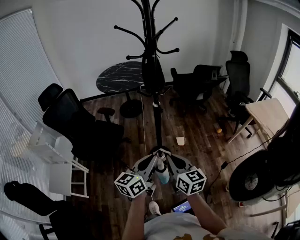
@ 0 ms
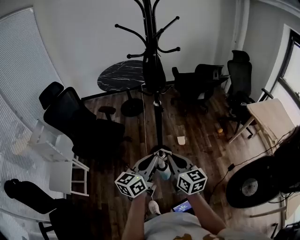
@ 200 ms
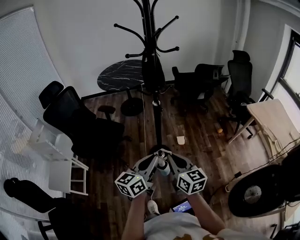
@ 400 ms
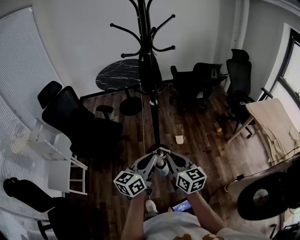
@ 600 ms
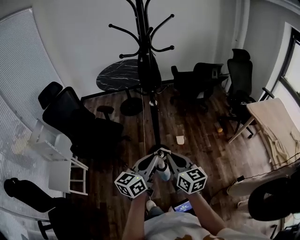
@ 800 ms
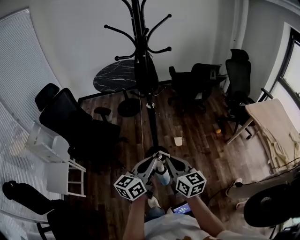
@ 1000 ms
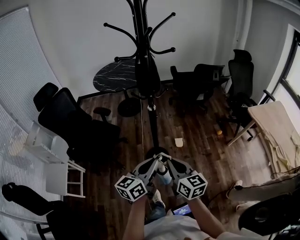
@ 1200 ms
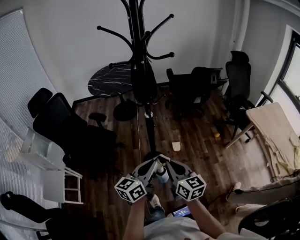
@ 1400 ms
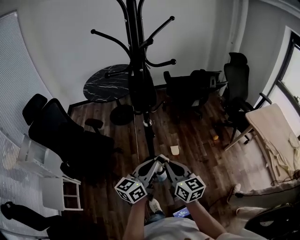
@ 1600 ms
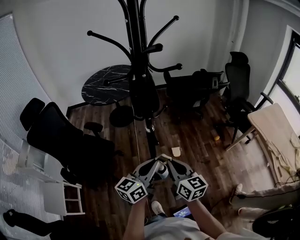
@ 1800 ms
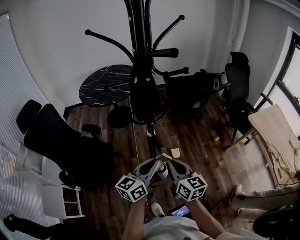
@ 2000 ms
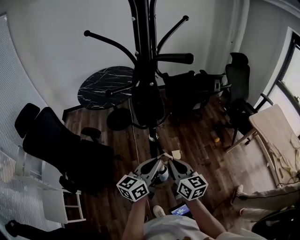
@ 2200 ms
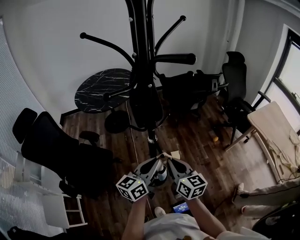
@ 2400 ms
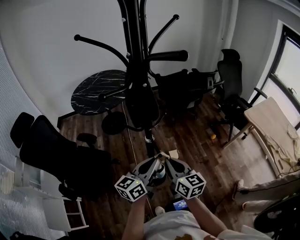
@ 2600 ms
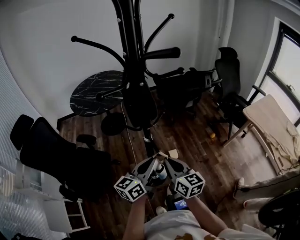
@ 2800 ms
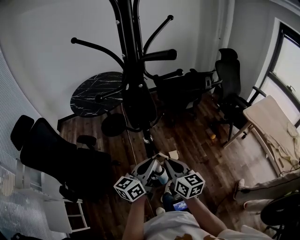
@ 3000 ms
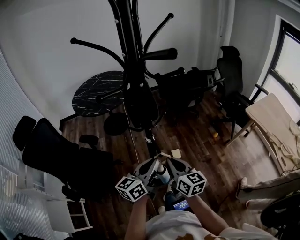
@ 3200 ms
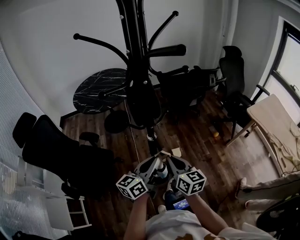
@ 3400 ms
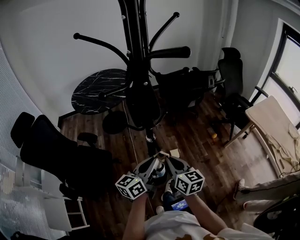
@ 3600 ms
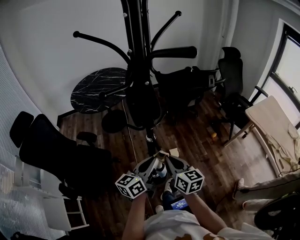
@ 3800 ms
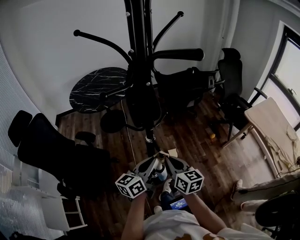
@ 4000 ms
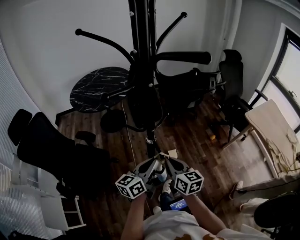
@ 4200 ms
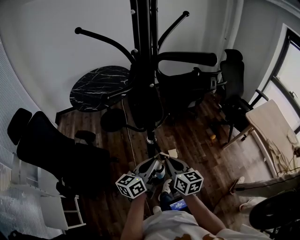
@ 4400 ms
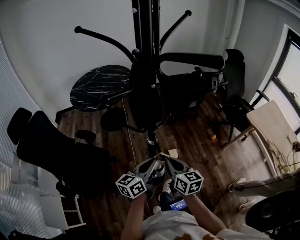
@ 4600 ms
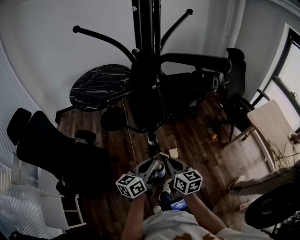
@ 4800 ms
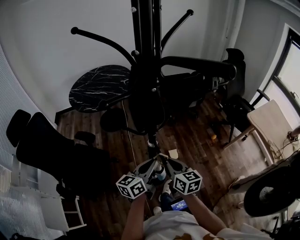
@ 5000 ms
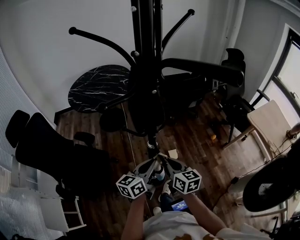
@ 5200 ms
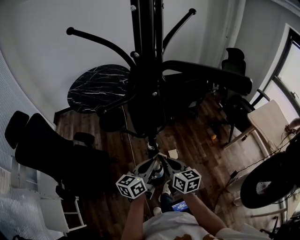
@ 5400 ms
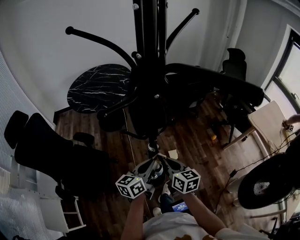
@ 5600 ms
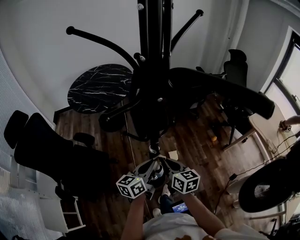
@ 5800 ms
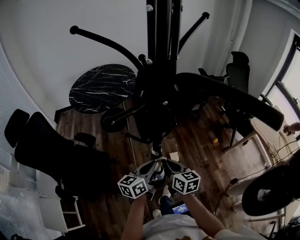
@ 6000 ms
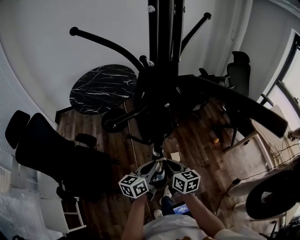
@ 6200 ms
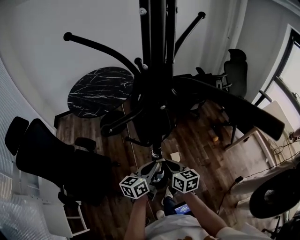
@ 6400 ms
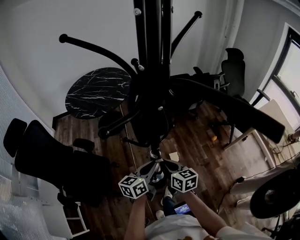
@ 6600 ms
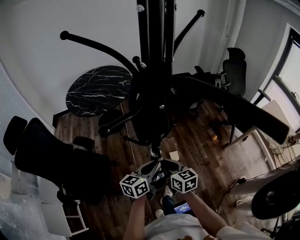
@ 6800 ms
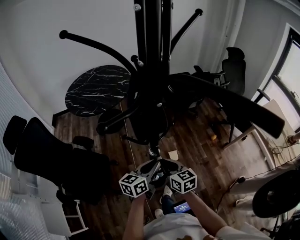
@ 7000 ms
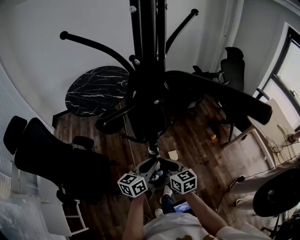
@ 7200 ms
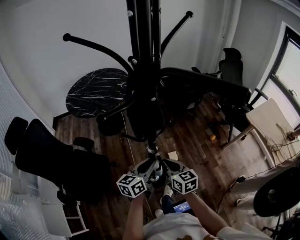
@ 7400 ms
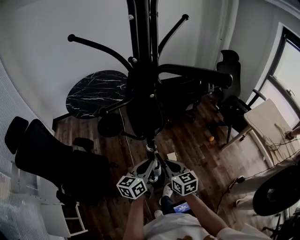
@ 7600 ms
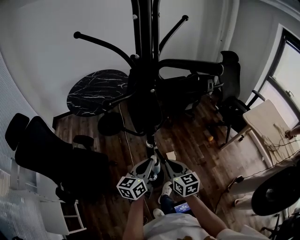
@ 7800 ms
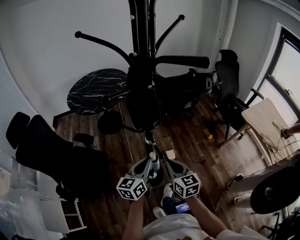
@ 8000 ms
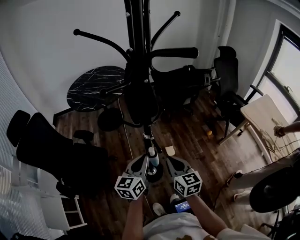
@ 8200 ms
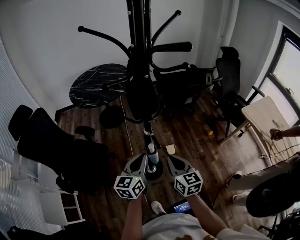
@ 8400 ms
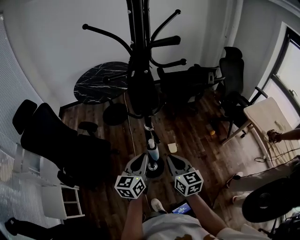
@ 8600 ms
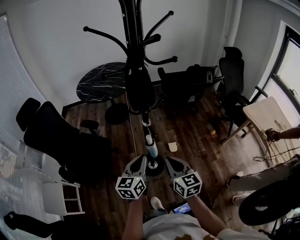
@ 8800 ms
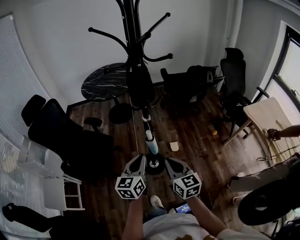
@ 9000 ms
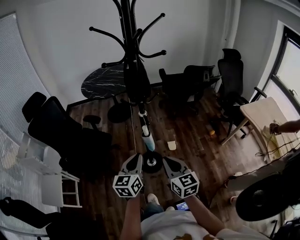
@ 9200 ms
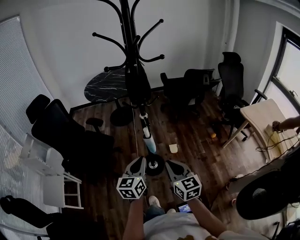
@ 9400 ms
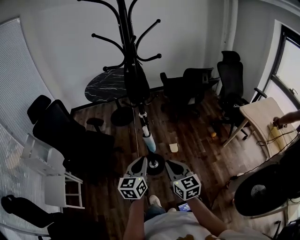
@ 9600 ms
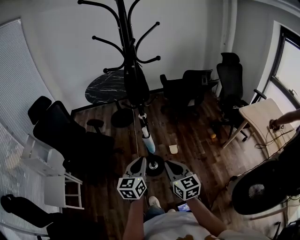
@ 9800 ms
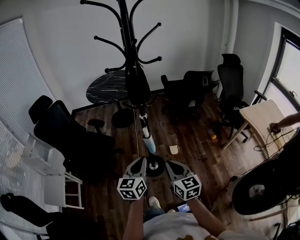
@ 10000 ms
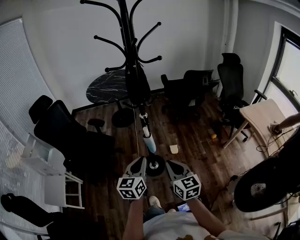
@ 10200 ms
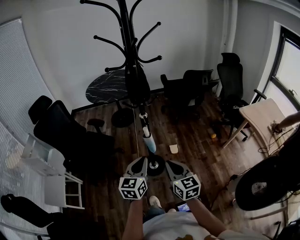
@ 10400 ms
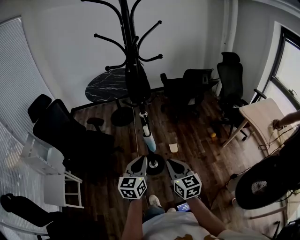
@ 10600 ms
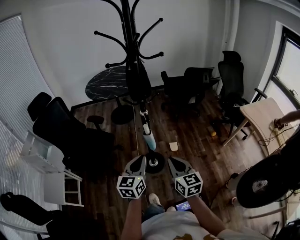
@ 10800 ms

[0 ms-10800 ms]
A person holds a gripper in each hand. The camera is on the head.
0 ms to 1600 ms: The two grippers go some 15 cm forward.
1600 ms to 3000 ms: The grippers both shift forward by some 10 cm.
3000 ms to 4600 ms: The left gripper changes place by roughly 5 cm. The right gripper moves roughly 5 cm.
4600 ms to 6200 ms: Both grippers move forward, approximately 5 cm.
6200 ms to 7800 ms: The right gripper heads backward, covering some 5 cm; the left gripper moves approximately 5 cm.
7800 ms to 9200 ms: Both grippers travel together backward, roughly 20 cm. The left gripper turns by about 20 degrees.
9200 ms to 10800 ms: The grippers move only a little.

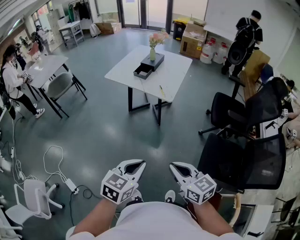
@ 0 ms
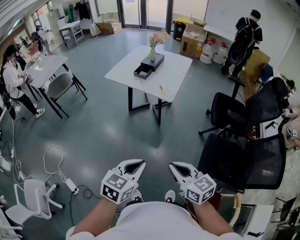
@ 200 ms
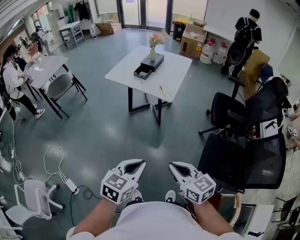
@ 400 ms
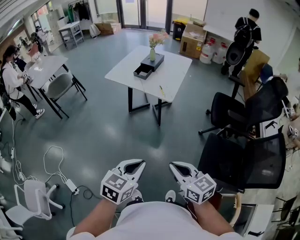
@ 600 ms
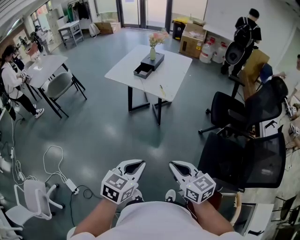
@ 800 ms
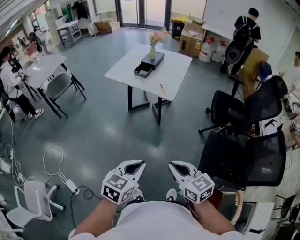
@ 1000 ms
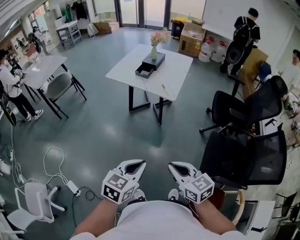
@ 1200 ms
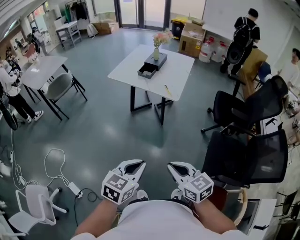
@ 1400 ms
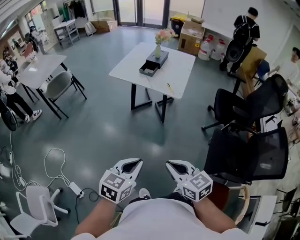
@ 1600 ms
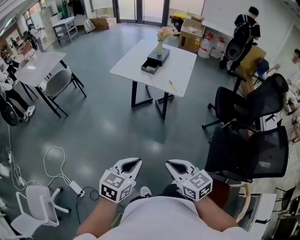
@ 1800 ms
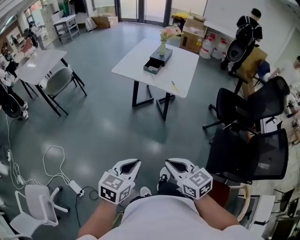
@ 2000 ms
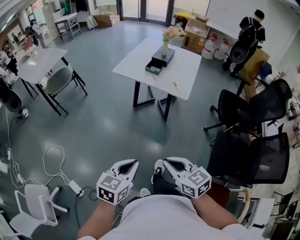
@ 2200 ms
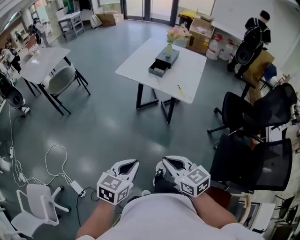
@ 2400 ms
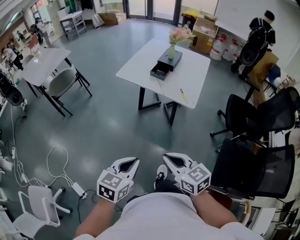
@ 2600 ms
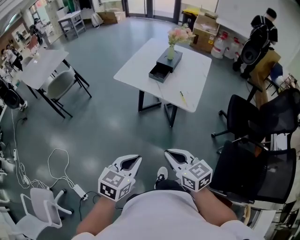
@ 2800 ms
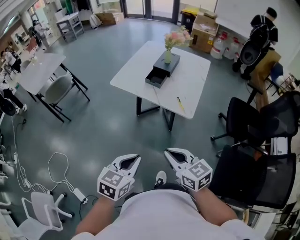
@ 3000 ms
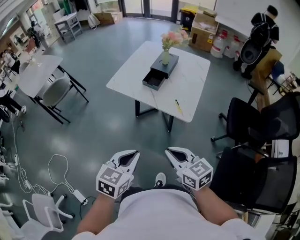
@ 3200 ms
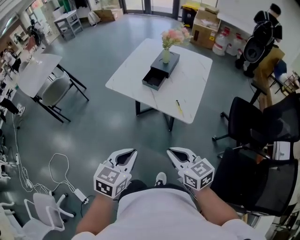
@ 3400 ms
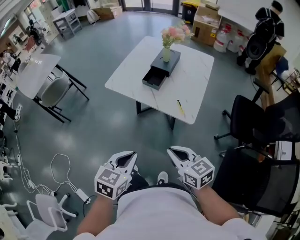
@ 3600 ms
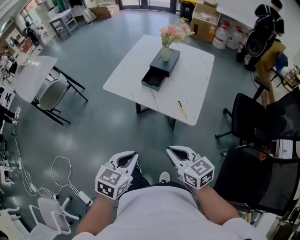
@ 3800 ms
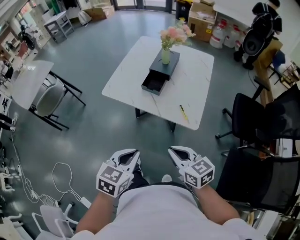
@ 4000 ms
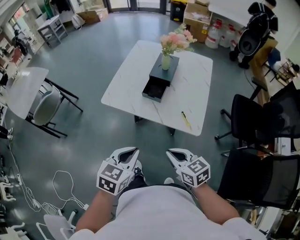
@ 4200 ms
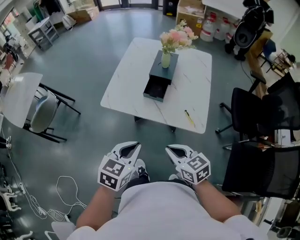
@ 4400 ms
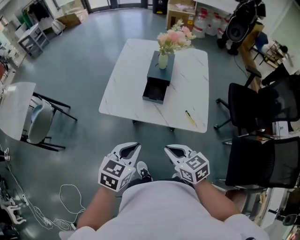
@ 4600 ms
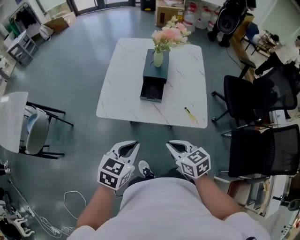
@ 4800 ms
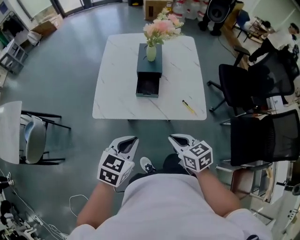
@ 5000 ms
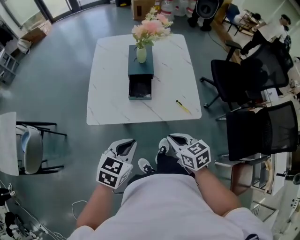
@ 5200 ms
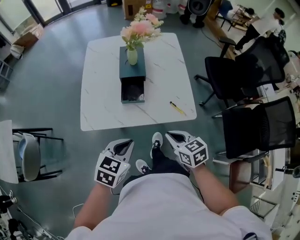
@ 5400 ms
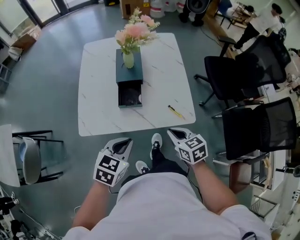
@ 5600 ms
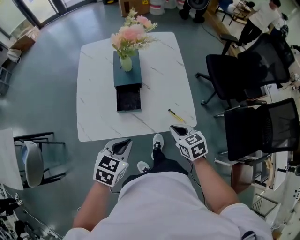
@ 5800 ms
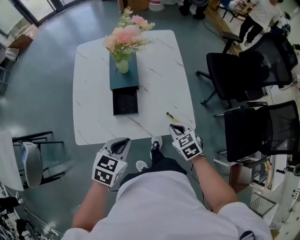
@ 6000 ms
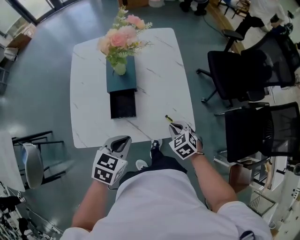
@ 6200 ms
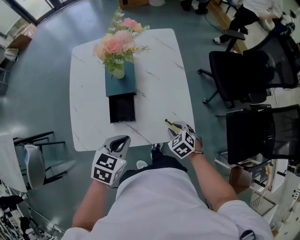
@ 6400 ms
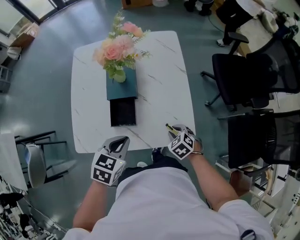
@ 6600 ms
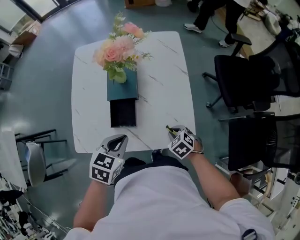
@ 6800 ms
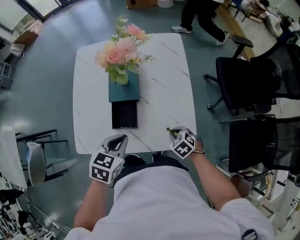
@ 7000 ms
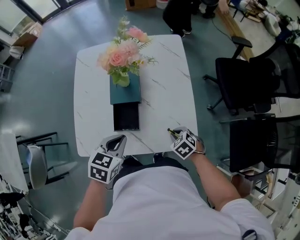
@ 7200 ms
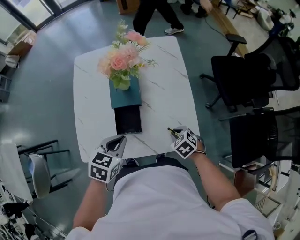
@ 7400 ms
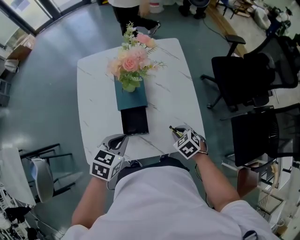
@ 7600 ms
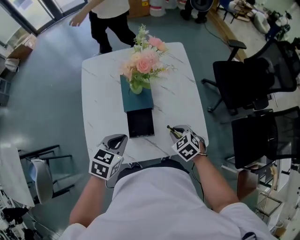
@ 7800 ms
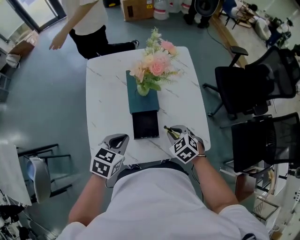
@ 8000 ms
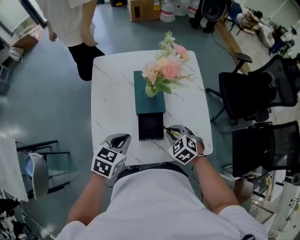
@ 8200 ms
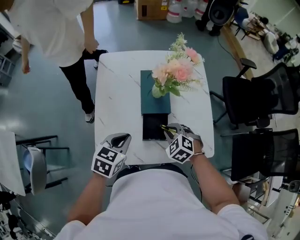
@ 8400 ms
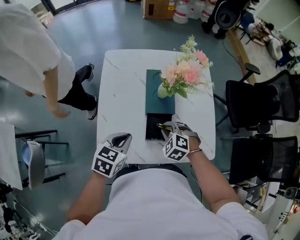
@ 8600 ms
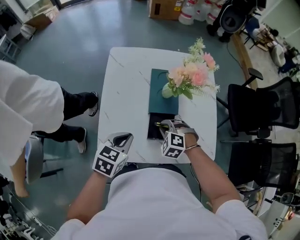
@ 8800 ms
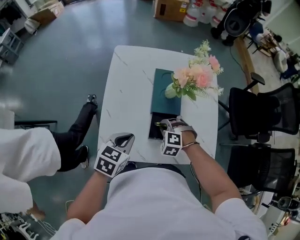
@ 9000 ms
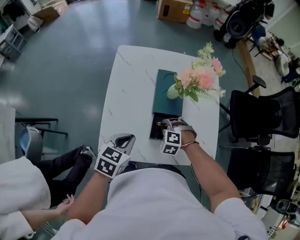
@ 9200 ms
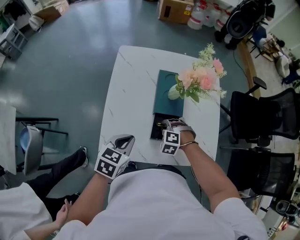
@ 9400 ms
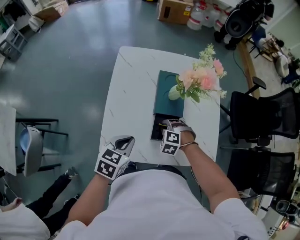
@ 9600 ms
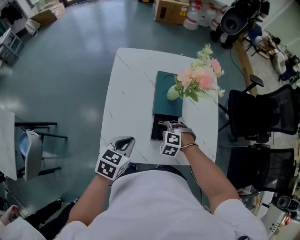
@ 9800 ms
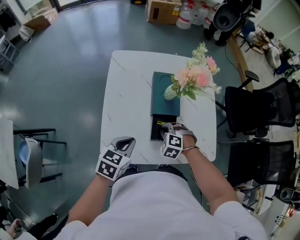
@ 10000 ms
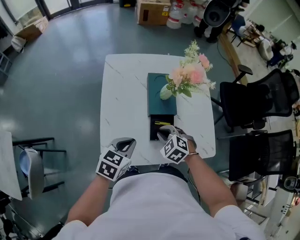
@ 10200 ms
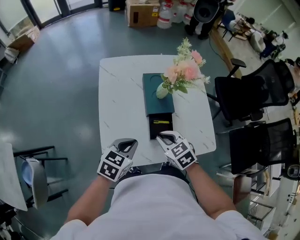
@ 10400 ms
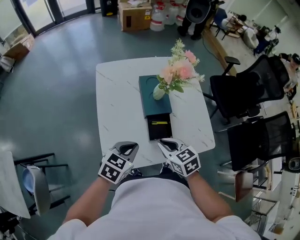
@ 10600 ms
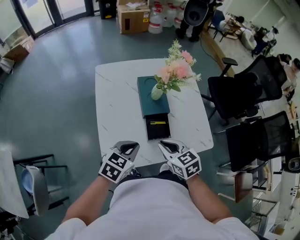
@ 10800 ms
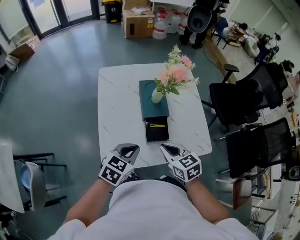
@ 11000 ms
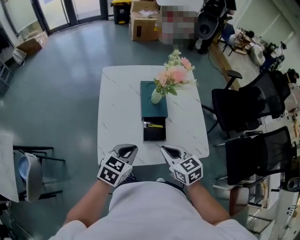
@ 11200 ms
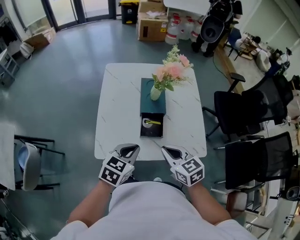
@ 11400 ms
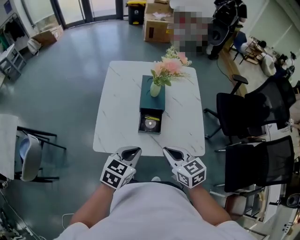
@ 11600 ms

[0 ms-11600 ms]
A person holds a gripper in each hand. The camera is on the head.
0 ms to 1400 ms: Both grippers move to the left, some 10 cm.
1400 ms to 2800 ms: The grippers both shift forward by roughly 20 cm.
2800 ms to 4400 ms: Both grippers move forward, approximately 30 cm.
4400 ms to 5800 ms: The left gripper ends up some 15 cm from where it was, and changes its angle by roughly 20 degrees; the right gripper moves approximately 20 cm, and changes its angle by approximately 30 degrees.
5800 ms to 7200 ms: The right gripper moves downward and forward, about 15 cm, and changes its angle by approximately 30 degrees. Meanwhile the left gripper travels forward by approximately 15 cm.
7200 ms to 8800 ms: The right gripper moves to the left, approximately 25 cm, and rotates around the line of its fingers by roughly 40 degrees, counterclockwise from behind. Meanwhile the left gripper goes approximately 15 cm to the left.
8800 ms to 10200 ms: The right gripper changes its angle by roughly 20 degrees.
10200 ms to 11600 ms: The right gripper goes roughly 20 cm backward, upward and to the right, and swivels about 50 degrees. Meanwhile the left gripper travels to the right and backward by approximately 15 cm.

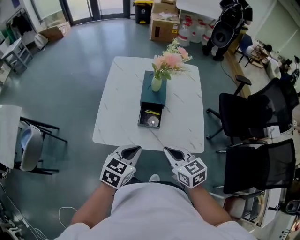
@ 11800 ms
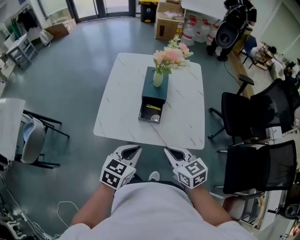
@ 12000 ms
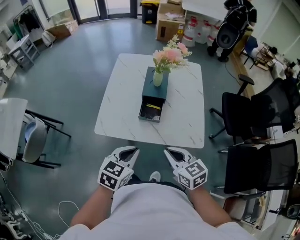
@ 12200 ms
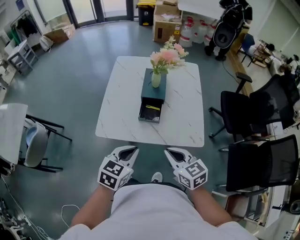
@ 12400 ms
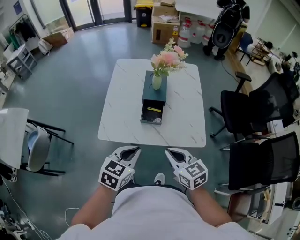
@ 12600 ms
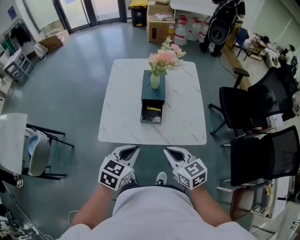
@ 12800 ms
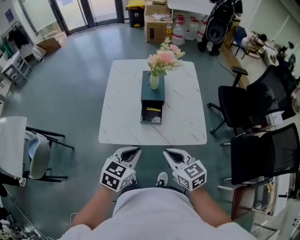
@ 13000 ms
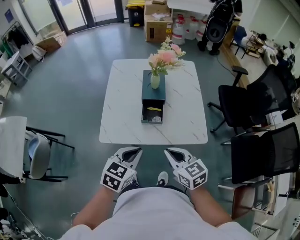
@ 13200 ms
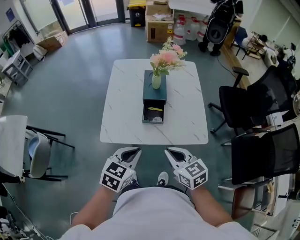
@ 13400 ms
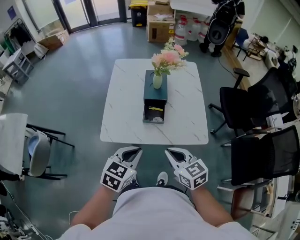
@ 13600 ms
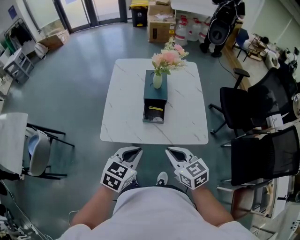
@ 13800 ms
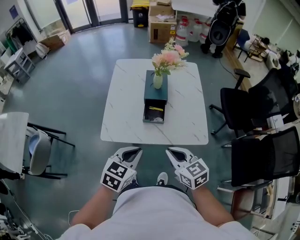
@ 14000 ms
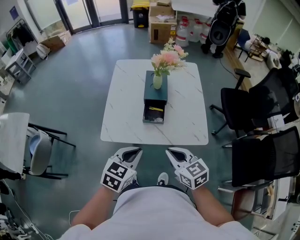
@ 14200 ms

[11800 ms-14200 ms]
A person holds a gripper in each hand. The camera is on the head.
11800 ms to 13000 ms: The right gripper goes approximately 5 cm backward. The left gripper shifts by some 5 cm.
13000 ms to 14200 ms: The two grippers keep their place.
